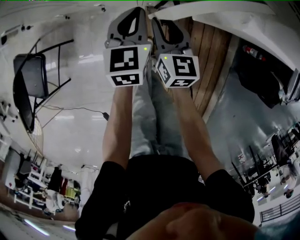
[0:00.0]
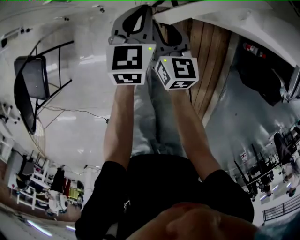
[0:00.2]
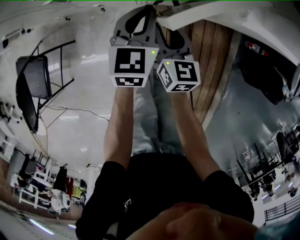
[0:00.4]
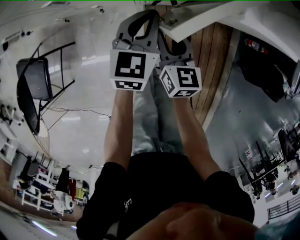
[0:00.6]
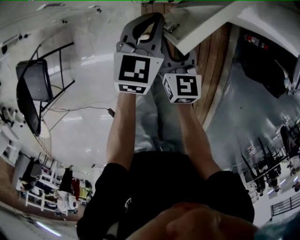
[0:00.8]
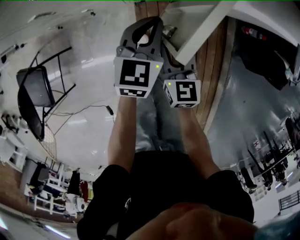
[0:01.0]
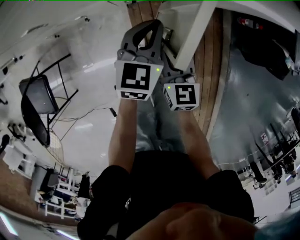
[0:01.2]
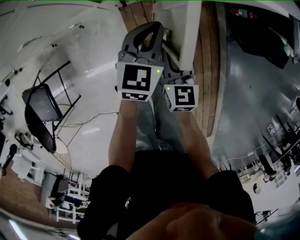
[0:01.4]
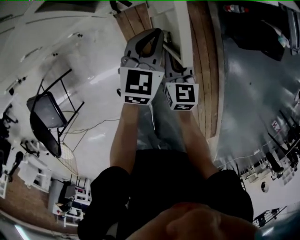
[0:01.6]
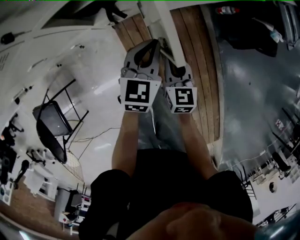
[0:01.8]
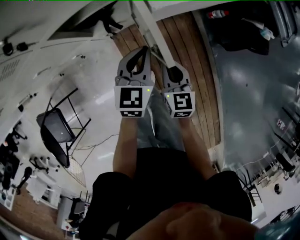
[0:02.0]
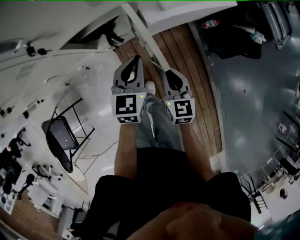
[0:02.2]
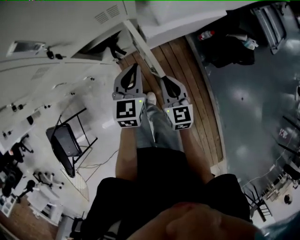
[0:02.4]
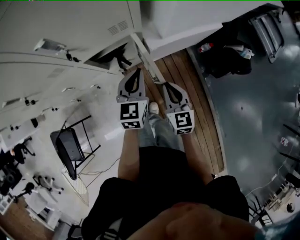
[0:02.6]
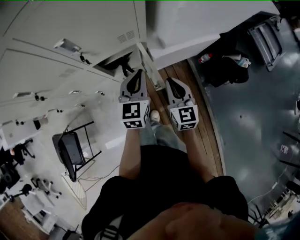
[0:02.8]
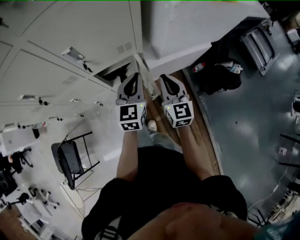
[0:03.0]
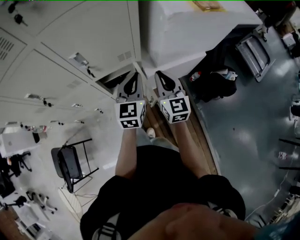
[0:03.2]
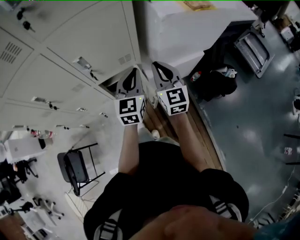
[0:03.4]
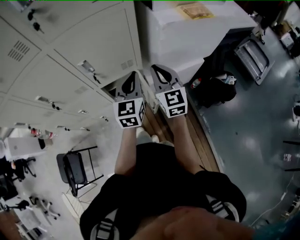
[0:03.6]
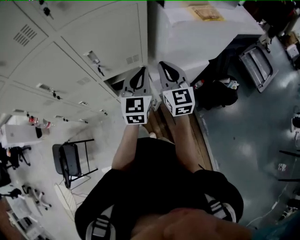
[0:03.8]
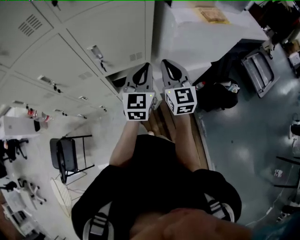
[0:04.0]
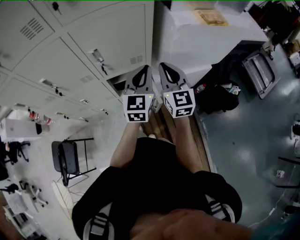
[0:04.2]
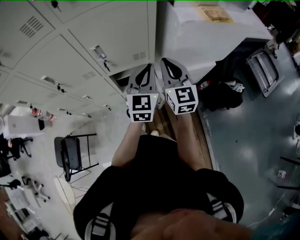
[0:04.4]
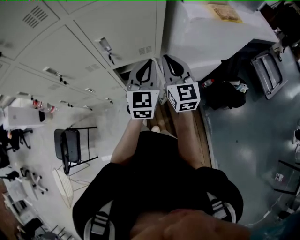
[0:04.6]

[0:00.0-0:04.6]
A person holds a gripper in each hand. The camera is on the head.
0:00.0 to 0:01.6: The left gripper changes place by roughly 25 cm, and changes its angle by approximately 30 degrees; the right gripper shifts by some 25 cm, swivels roughly 20 degrees, and closes its fingers.
0:01.6 to 0:03.0: Both grippers move upward, approximately 35 cm. The right gripper turns by some 30 degrees. The left gripper changes its angle by roughly 20 degrees.
0:03.0 to 0:04.6: Both grippers travel together upward, about 15 cm.

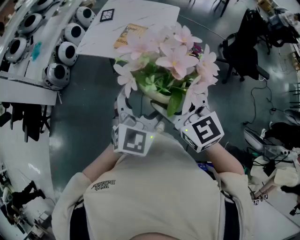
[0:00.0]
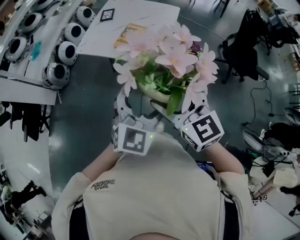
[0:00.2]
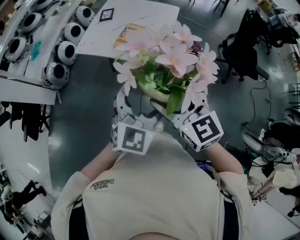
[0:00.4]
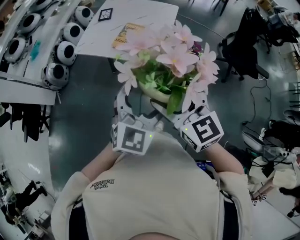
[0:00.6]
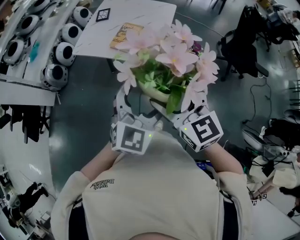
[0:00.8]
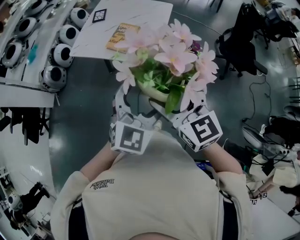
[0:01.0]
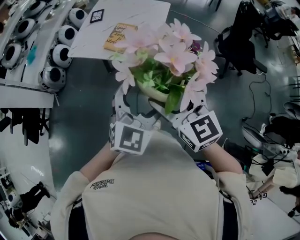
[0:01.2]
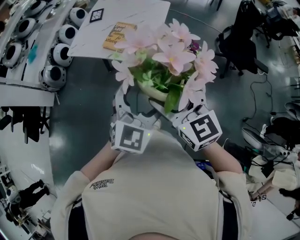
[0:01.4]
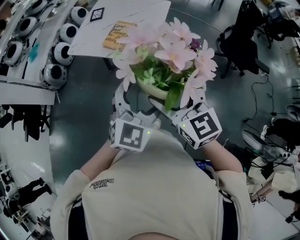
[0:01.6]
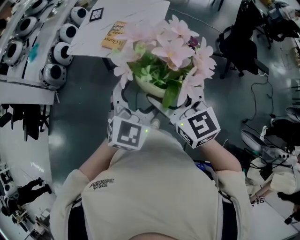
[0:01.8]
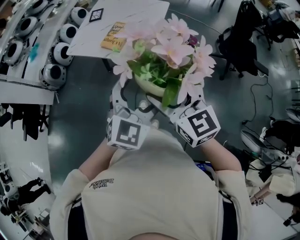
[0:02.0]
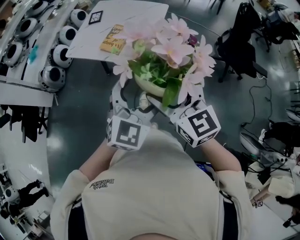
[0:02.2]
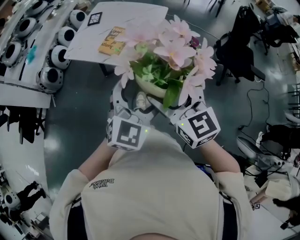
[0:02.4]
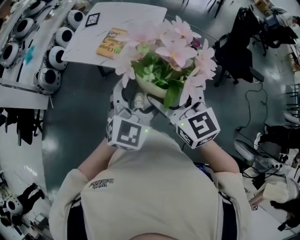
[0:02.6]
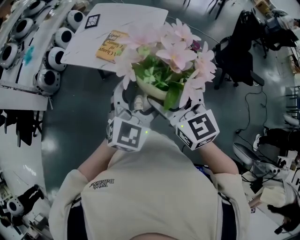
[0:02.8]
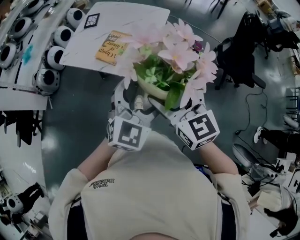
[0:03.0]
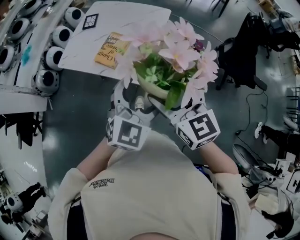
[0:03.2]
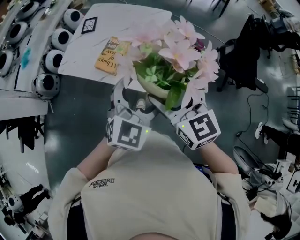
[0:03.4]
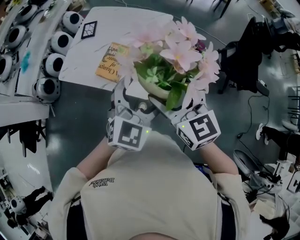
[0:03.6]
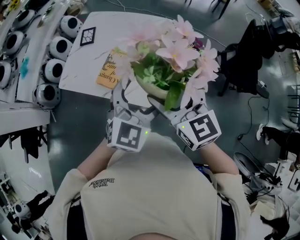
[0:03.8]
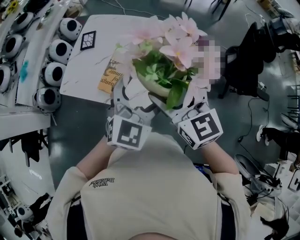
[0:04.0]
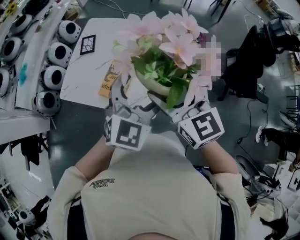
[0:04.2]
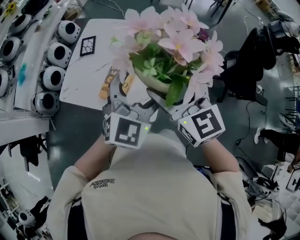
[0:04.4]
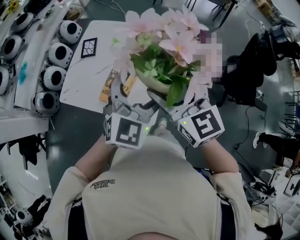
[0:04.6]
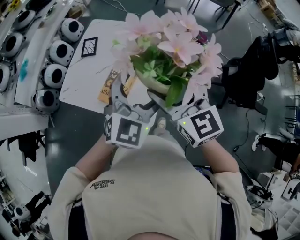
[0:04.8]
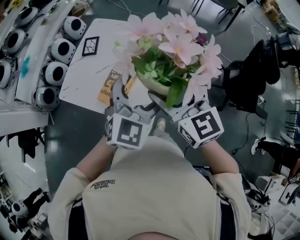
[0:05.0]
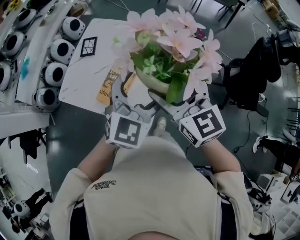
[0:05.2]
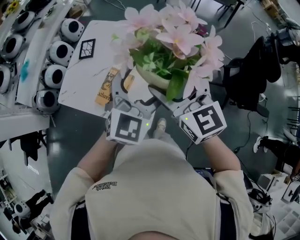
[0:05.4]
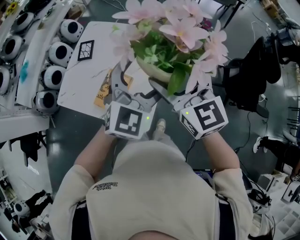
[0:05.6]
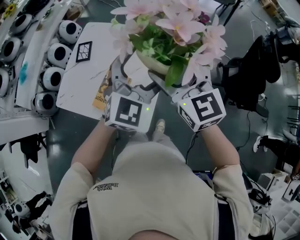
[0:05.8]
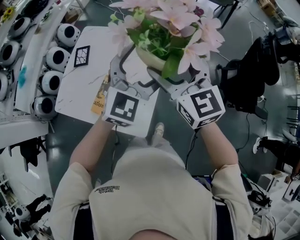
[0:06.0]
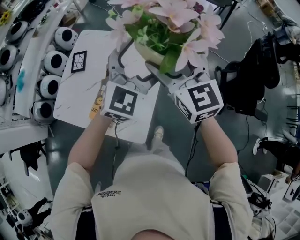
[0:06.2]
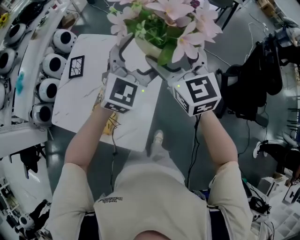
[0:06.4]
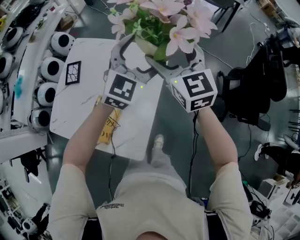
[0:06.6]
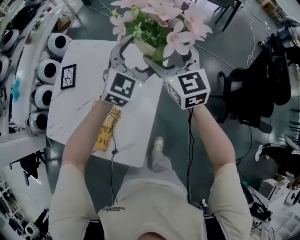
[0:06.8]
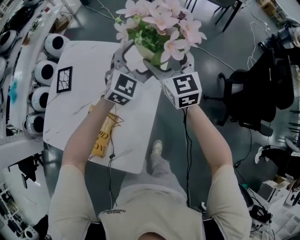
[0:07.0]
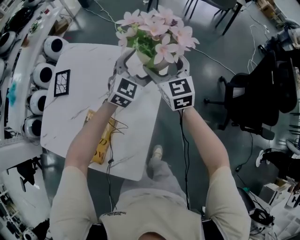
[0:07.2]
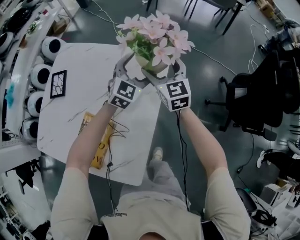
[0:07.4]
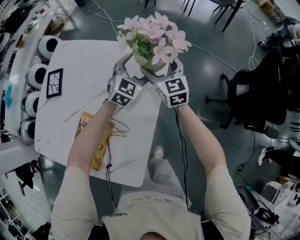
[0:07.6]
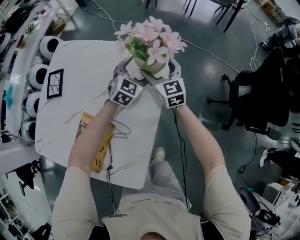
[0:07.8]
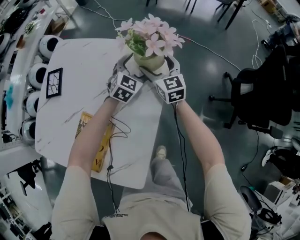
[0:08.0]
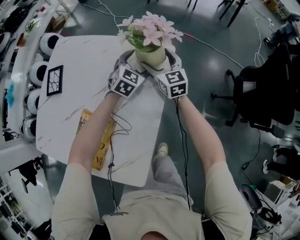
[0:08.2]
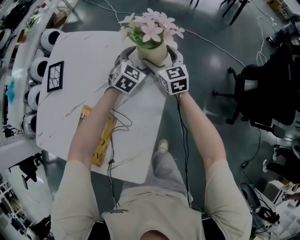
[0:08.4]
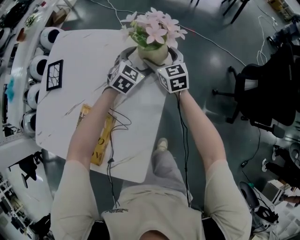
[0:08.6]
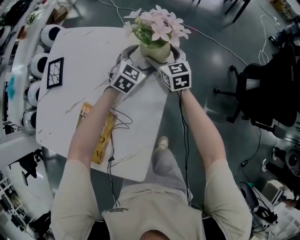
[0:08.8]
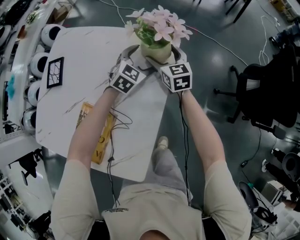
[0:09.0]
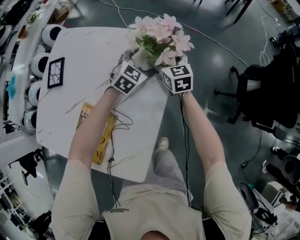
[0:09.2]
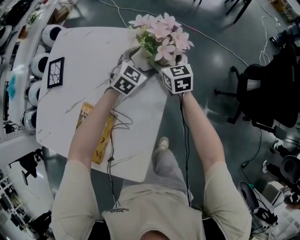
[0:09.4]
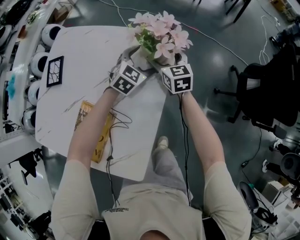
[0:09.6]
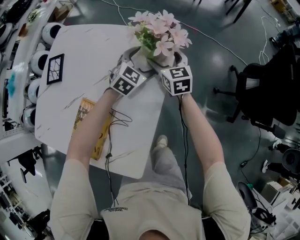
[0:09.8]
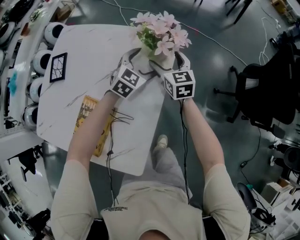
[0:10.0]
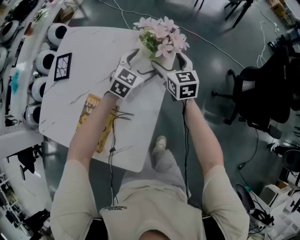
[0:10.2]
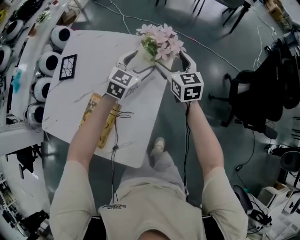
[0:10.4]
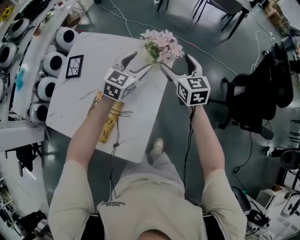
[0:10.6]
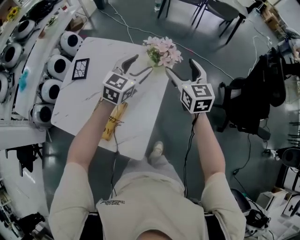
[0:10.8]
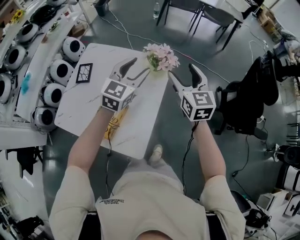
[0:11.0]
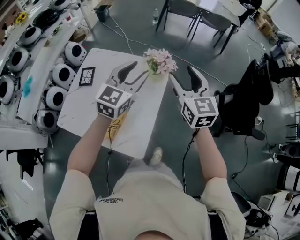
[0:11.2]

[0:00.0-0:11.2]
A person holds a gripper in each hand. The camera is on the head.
0:00.0 to 0:01.6: The grippers both shift to the right by some 10 cm.
0:01.6 to 0:03.2: Both grippers travel together forward, some 15 cm.
0:03.2 to 0:04.8: Both grippers travel together forward, approximately 25 cm.
0:04.8 to 0:06.4: Both grippers move forward, roughly 20 cm.
0:06.4 to 0:08.0: Both grippers travel together downward and forward, some 40 cm. The left gripper turns by roughly 20 degrees.
0:08.0 to 0:09.6: There are only small adjustments of the grippers.
0:09.6 to 0:11.2: Both grippers travel together upward and backward, approximately 40 cm. The left gripper turns by about 30 degrees, and closes its fingers, while the right gripper closes up.

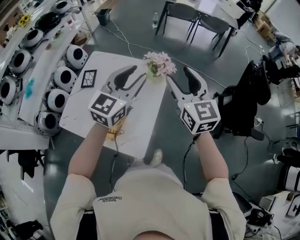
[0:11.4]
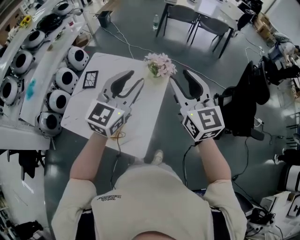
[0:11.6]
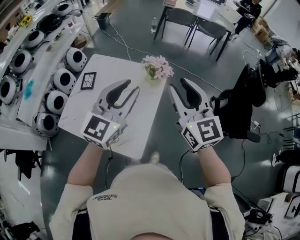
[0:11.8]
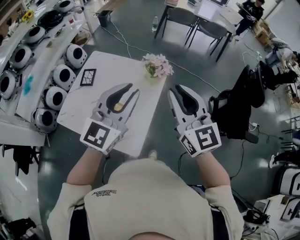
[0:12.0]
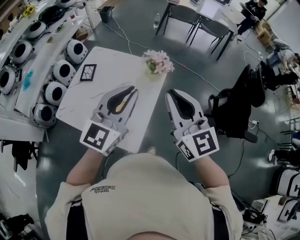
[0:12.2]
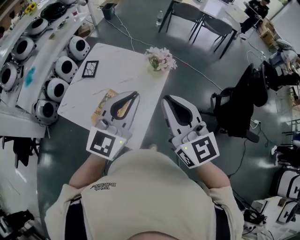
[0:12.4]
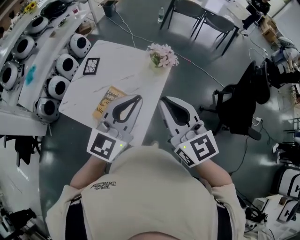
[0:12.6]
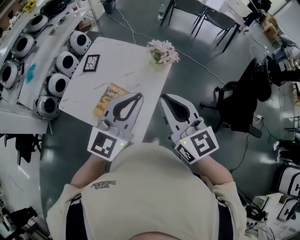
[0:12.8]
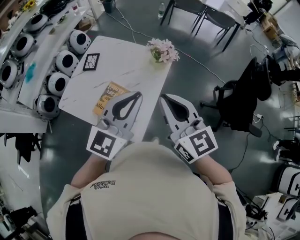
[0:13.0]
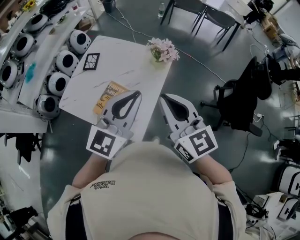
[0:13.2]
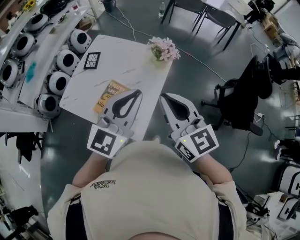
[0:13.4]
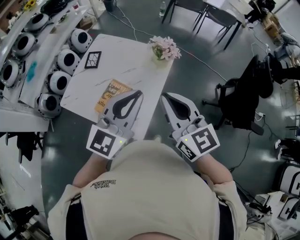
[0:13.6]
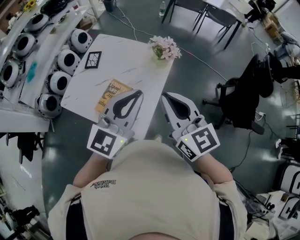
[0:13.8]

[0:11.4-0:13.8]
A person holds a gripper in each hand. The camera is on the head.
0:11.4 to 0:12.6: Both grippers travel together backward, about 15 cm. The right gripper closes up.
0:12.6 to 0:13.8: There are only small adjustments of the grippers.

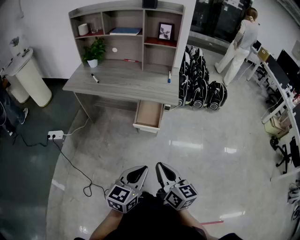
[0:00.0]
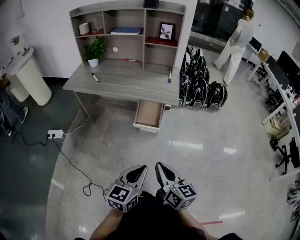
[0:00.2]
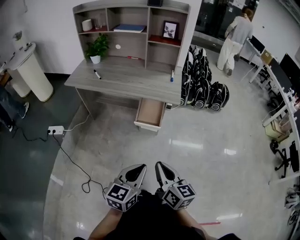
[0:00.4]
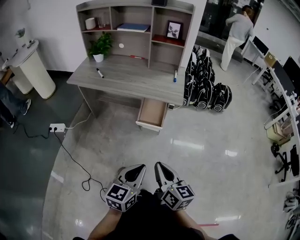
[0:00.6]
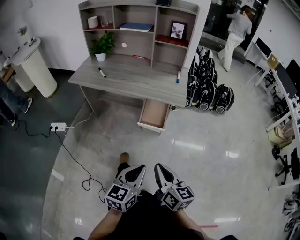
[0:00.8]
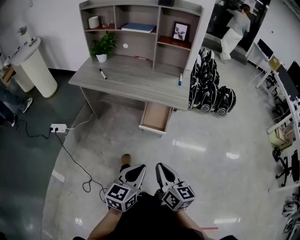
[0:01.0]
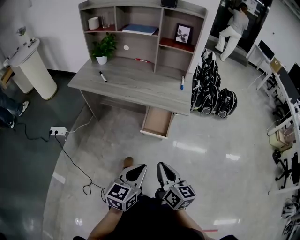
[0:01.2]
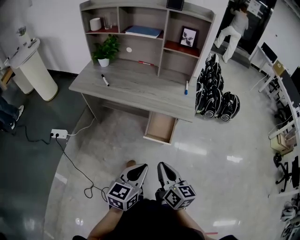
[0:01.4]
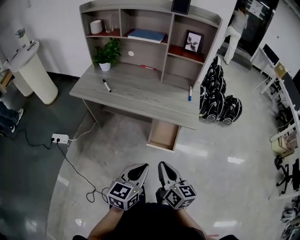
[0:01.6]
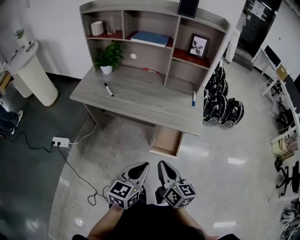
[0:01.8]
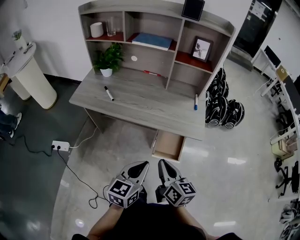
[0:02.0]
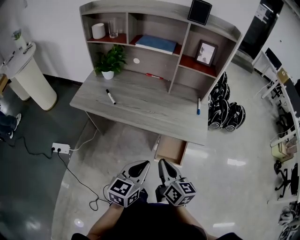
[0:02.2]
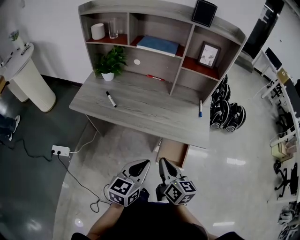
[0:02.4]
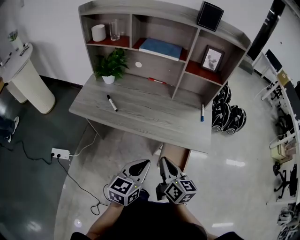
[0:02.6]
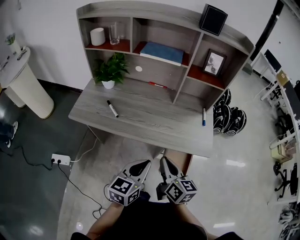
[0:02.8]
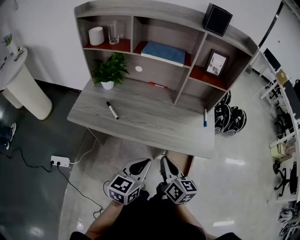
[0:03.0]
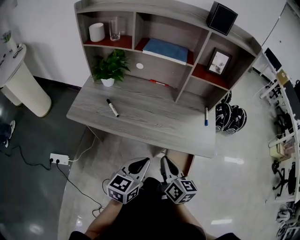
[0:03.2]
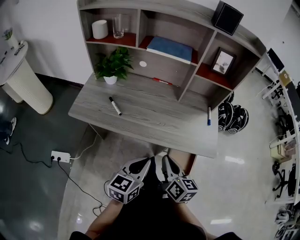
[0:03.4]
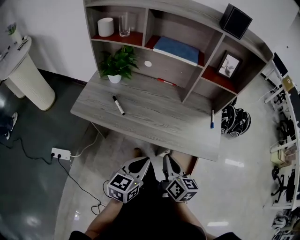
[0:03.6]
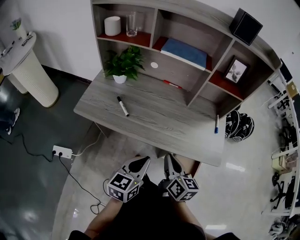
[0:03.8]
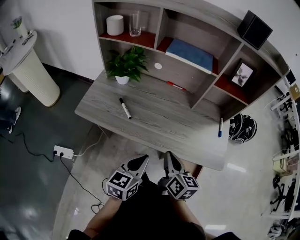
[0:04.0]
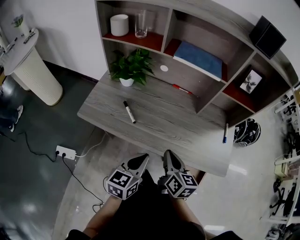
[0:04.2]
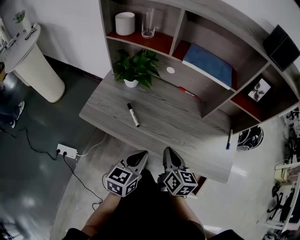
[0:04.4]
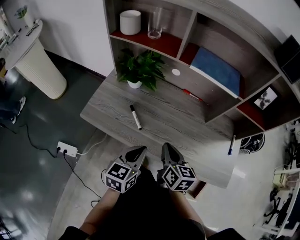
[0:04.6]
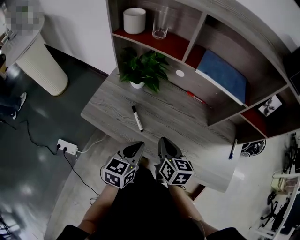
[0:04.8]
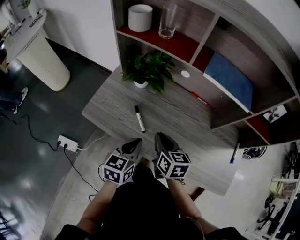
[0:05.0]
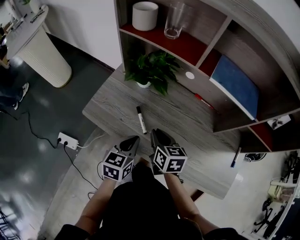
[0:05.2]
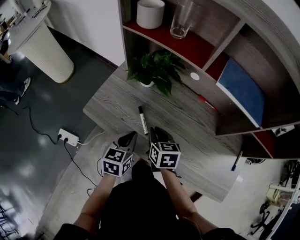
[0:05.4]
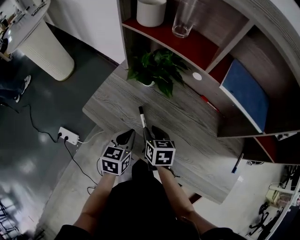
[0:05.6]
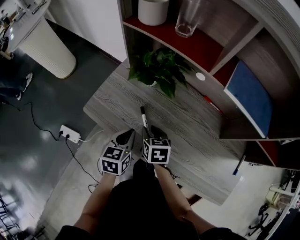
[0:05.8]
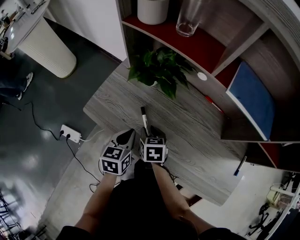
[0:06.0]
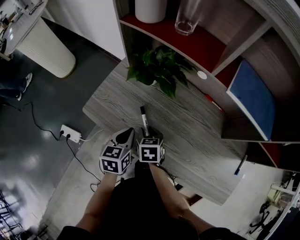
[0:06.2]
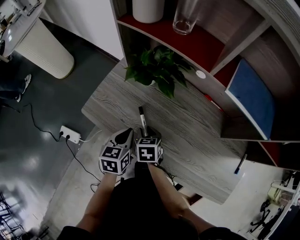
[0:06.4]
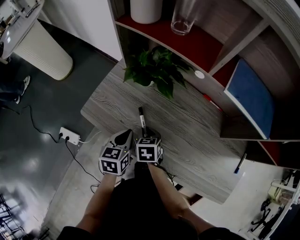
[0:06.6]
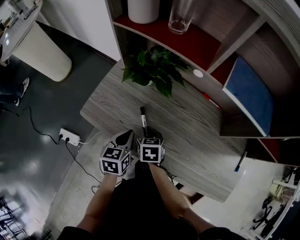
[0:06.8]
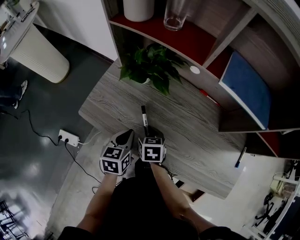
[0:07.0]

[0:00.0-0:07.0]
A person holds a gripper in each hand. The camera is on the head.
0:00.0 to 0:01.4: The two grippers go some 15 cm forward and to the left.
0:01.4 to 0:02.8: Both grippers move forward and to the left, some 30 cm.
0:02.8 to 0:04.2: The right gripper heads forward and to the left, covering about 15 cm, while the left gripper travels to the left and forward by some 15 cm.
0:04.2 to 0:05.6: The two grippers go roughly 25 cm forward, to the left and downward. The right gripper rotates approximately 40 degrees, and opens. Meanwhile the left gripper swivels some 30 degrees.
0:05.6 to 0:07.0: There are only small adjustments of the grippers.
